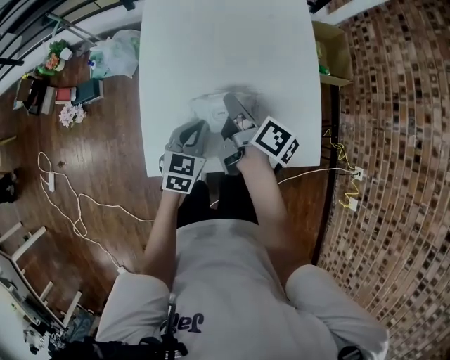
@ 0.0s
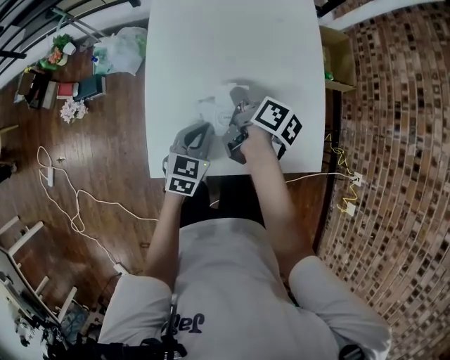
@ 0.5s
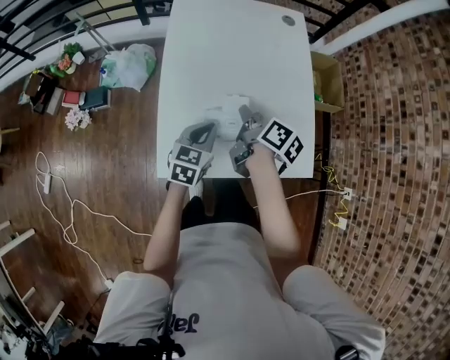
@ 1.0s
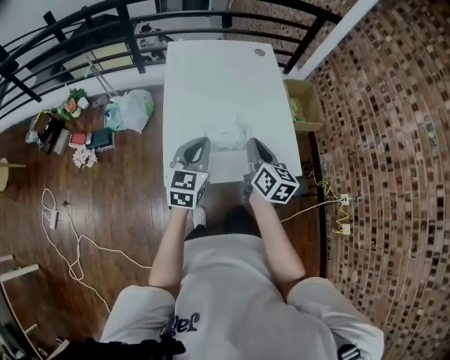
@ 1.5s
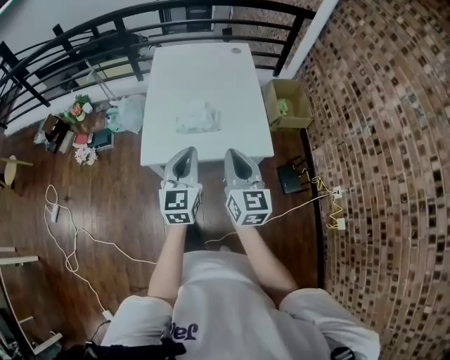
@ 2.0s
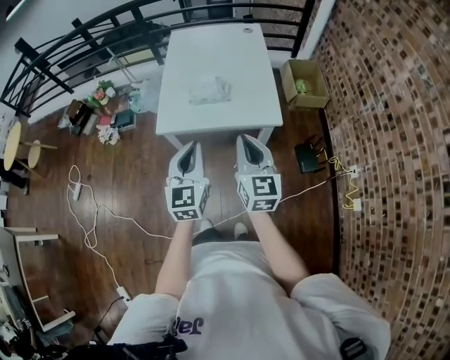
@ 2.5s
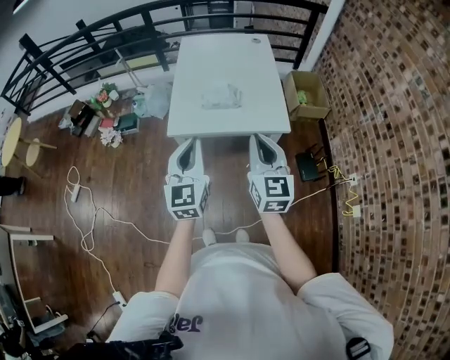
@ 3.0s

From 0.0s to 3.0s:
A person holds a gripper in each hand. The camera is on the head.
From 0.0s to 1.5s: The left gripper is displaced upward by some 20 cm, and turns by about 20 degrees; the right gripper goes some 15 cm backward and upward, and rolls counterclockwise, seen from behind, by roughly 40 degrees.
From 1.5s to 3.0s: Both grippers move backward and upward, roughly 30 cm. The left gripper turns by roughly 20 degrees, while the right gripper changes its angle by about 30 degrees.

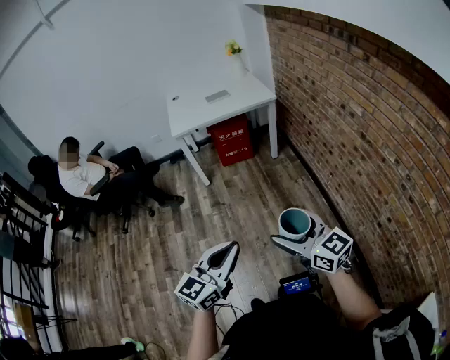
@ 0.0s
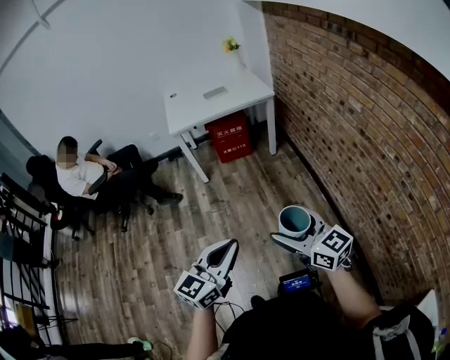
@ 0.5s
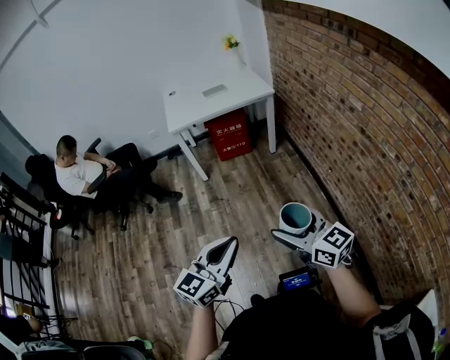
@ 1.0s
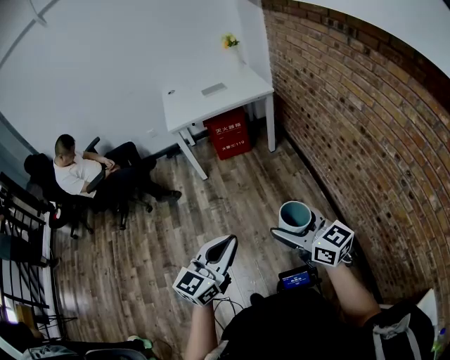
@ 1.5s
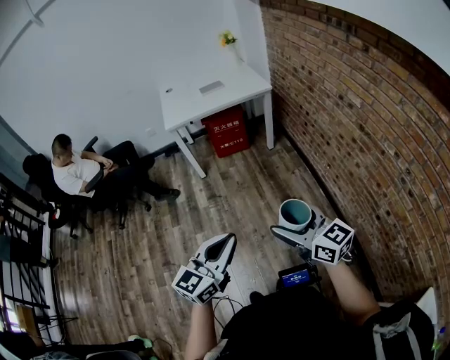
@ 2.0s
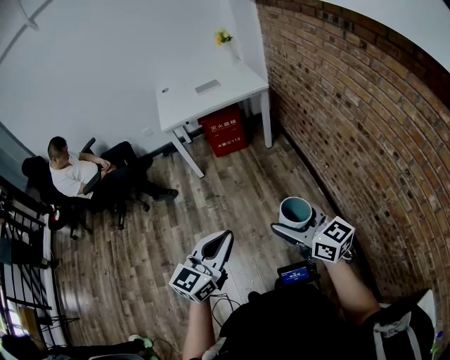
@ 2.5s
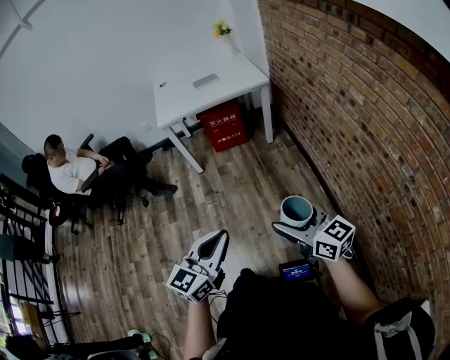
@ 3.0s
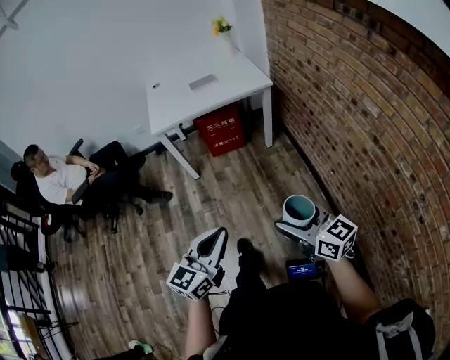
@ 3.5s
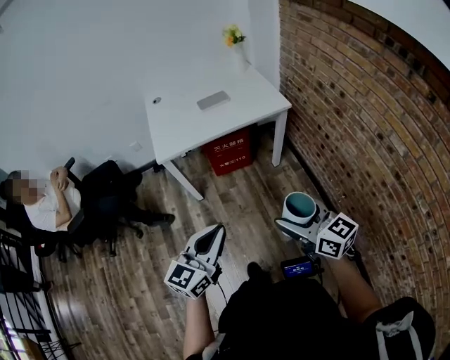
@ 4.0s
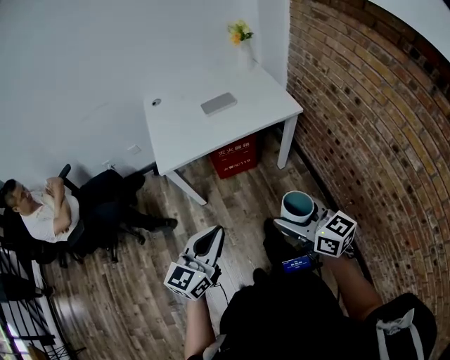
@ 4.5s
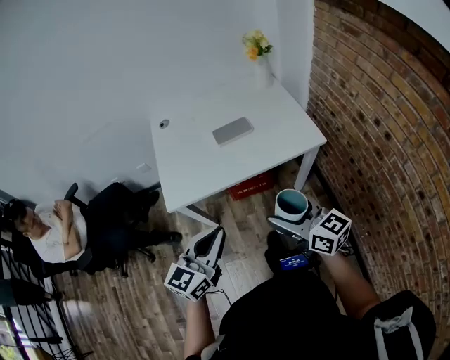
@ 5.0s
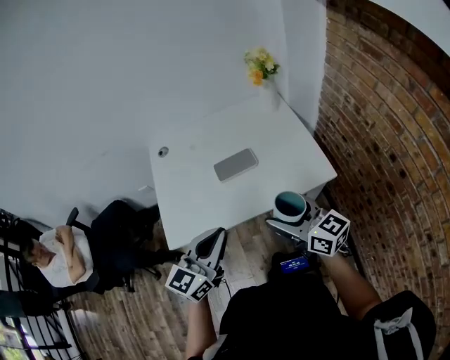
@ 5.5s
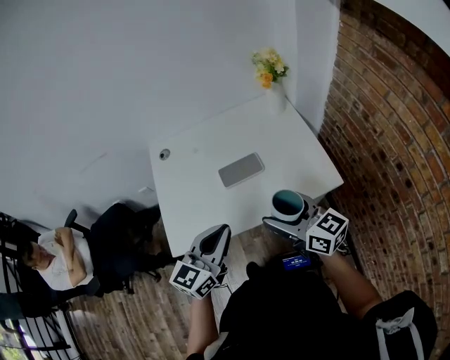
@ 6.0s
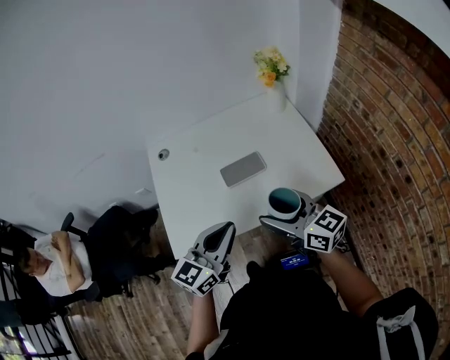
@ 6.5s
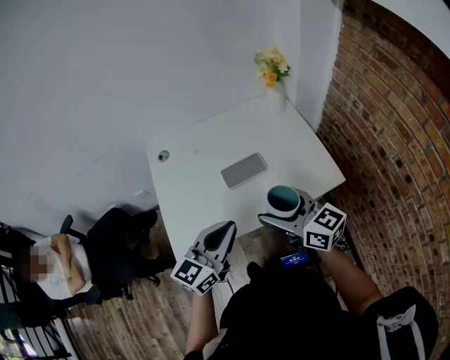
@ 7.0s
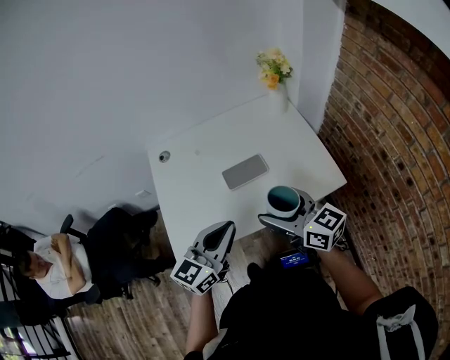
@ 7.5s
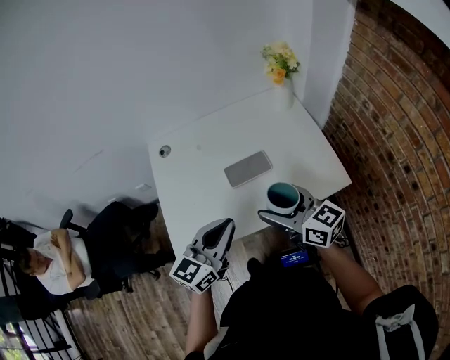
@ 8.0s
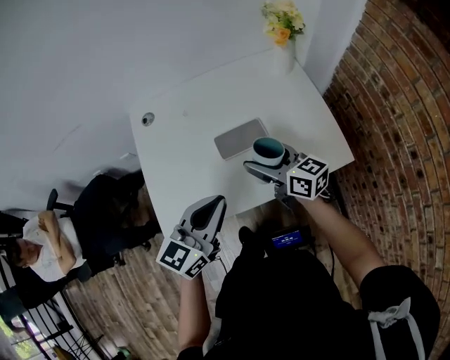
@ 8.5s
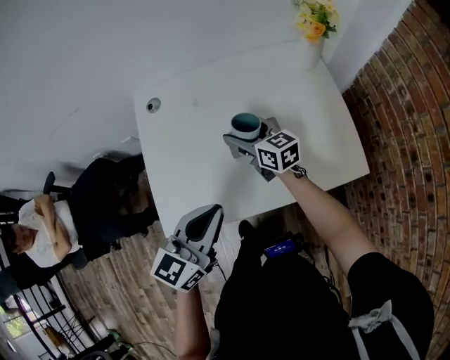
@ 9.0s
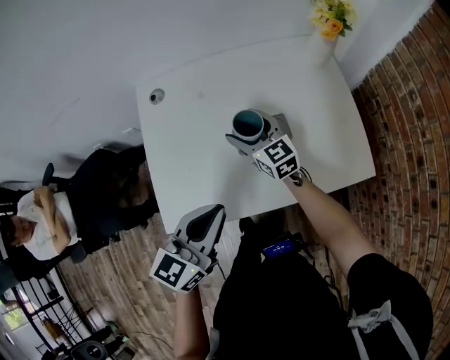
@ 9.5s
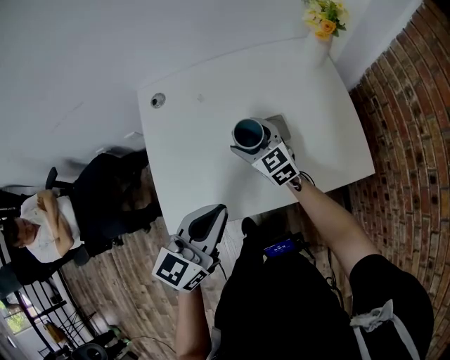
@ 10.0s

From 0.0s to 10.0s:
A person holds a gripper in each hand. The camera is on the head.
From 0.0s to 2.0s: The grippers move only a little.
From 2.0s to 4.0s: Both grippers travel together forward, about 35 cm.
From 4.0s to 6.0s: Both grippers are carried forward, approximately 50 cm.
From 6.0s to 8.0s: The right gripper ends up roughly 5 cm from where it was.
From 8.0s to 10.0s: The left gripper ends up some 5 cm from where it was; the right gripper travels downward, forward and to the left by roughly 30 cm, and changes its angle by approximately 30 degrees.

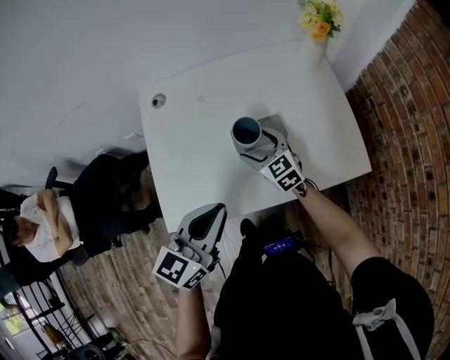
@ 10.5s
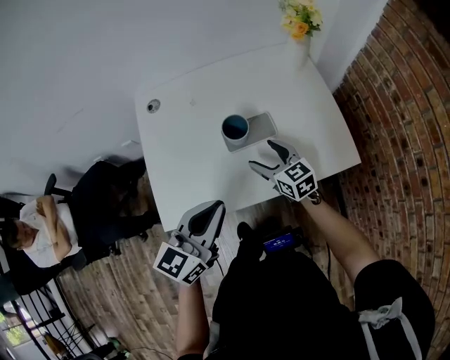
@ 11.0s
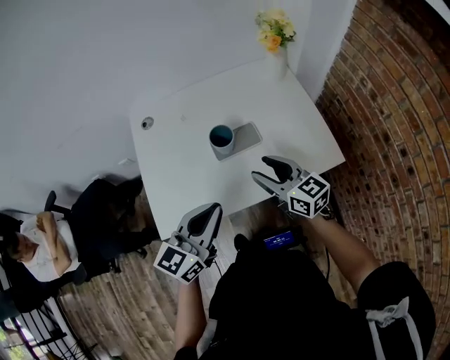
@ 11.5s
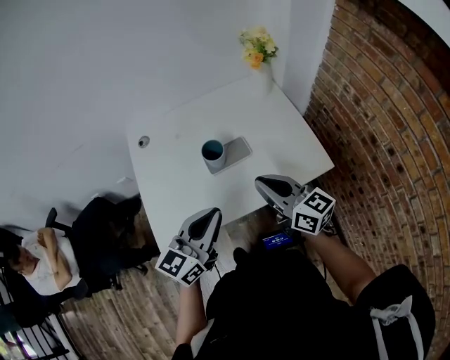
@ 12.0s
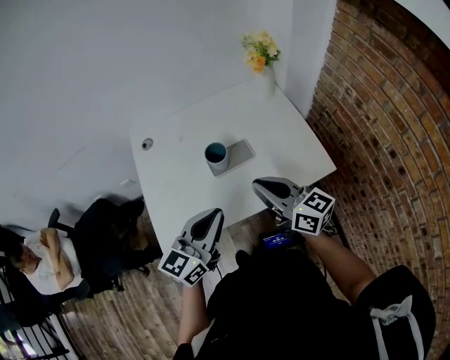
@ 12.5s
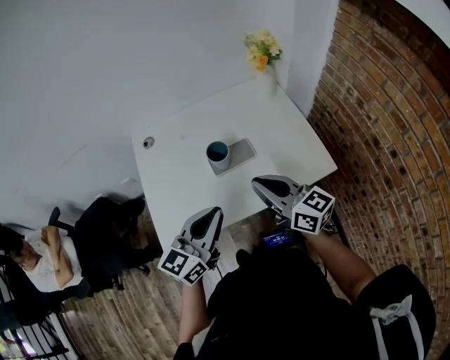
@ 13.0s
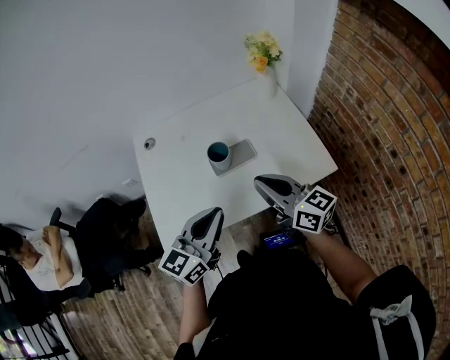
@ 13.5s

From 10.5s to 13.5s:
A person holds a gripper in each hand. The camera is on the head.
From 10.5s to 12.0s: The left gripper goes approximately 5 cm to the right; the right gripper moves upward, backward and to the right, about 25 cm, turns by some 40 degrees, and closes.
From 12.0s to 13.5s: There are only small adjustments of the grippers.

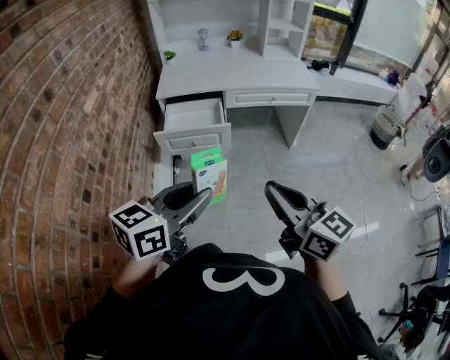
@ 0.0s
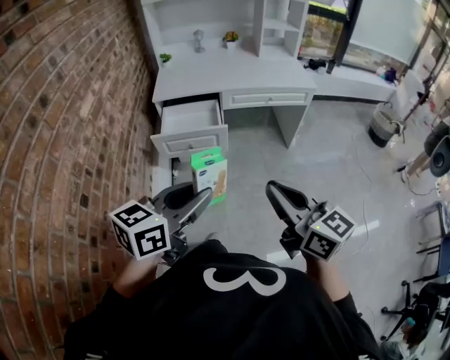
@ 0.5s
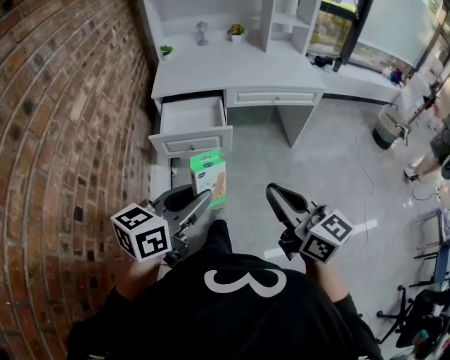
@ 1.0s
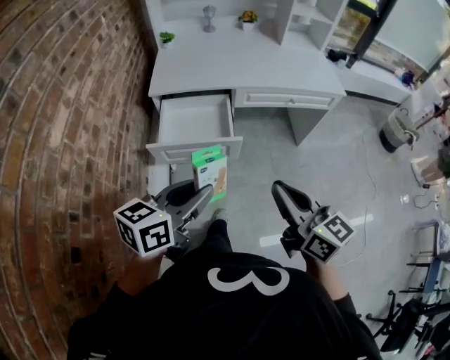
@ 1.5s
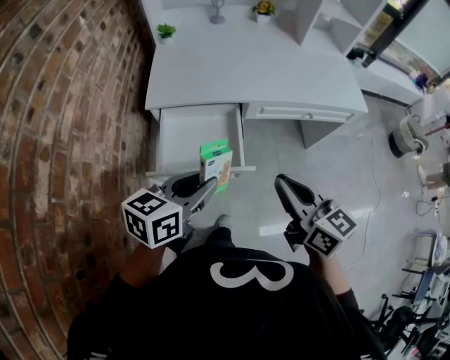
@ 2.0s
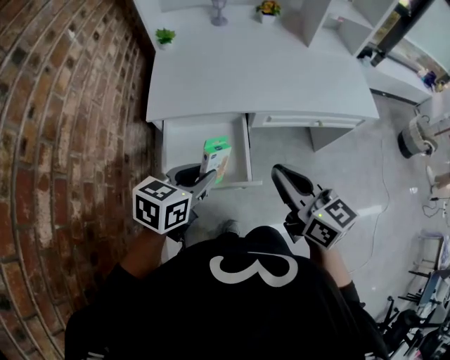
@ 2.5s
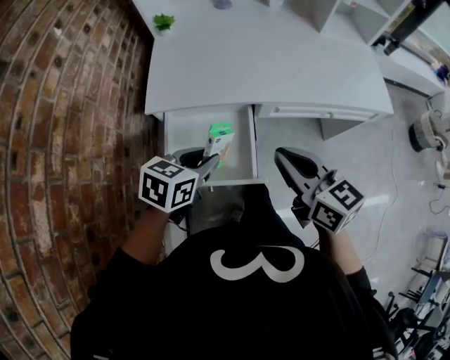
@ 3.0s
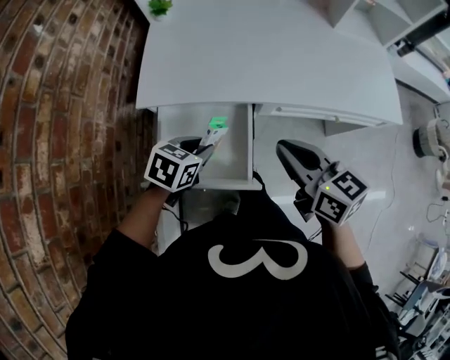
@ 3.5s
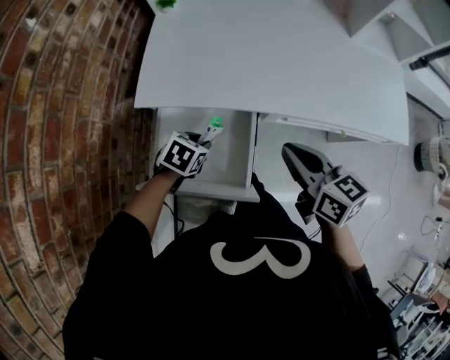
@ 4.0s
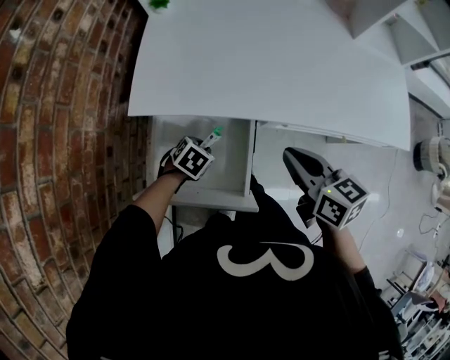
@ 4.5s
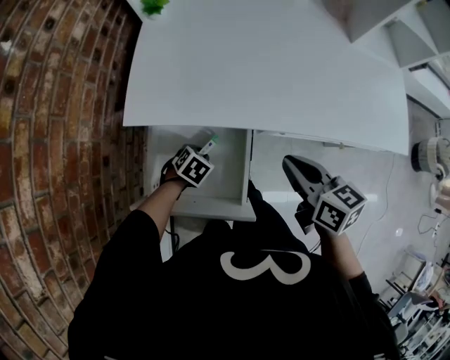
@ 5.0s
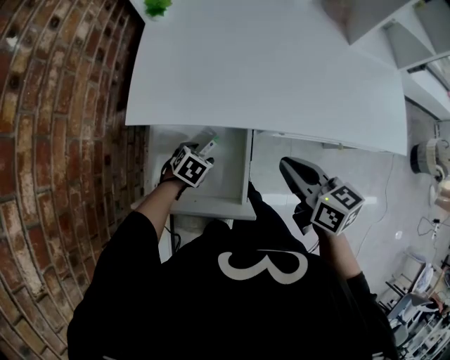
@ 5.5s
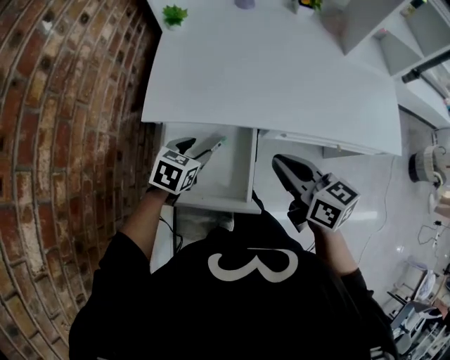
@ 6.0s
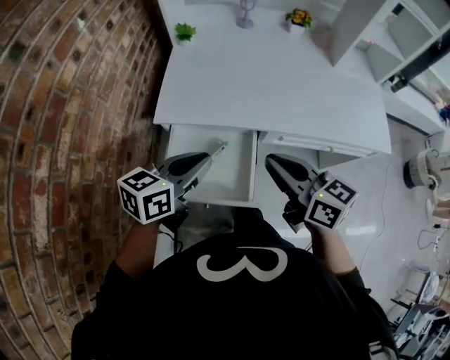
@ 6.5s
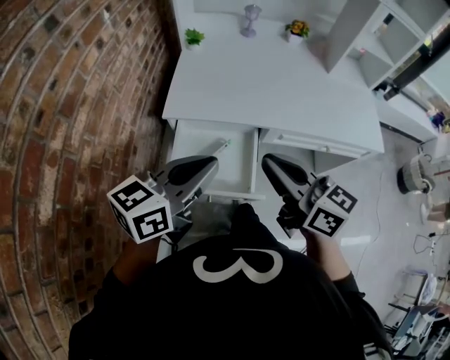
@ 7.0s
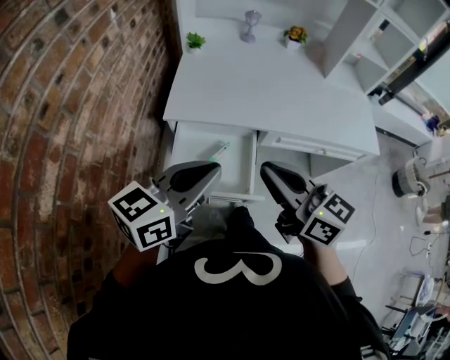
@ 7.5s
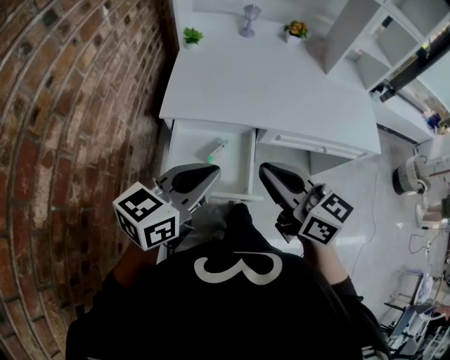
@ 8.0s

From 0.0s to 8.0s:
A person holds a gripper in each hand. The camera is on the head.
From 0.0s to 2.0s: The two grippers go approximately 40 cm forward.
From 2.0s to 4.0s: The right gripper goes about 25 cm forward and downward; the left gripper moves downward and forward, about 35 cm, and tips its fingers downward by approximately 40 degrees.
From 4.0s to 6.0s: The left gripper goes some 5 cm upward, and opens up.
From 6.0s to 8.0s: The right gripper shifts roughly 20 cm upward, backward and to the left. The left gripper travels upward and backward by some 30 cm, tips its fingers upward by about 40 degrees, and closes up.

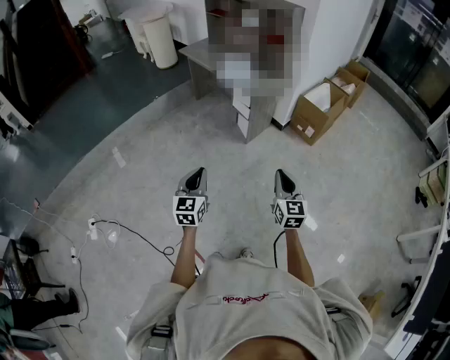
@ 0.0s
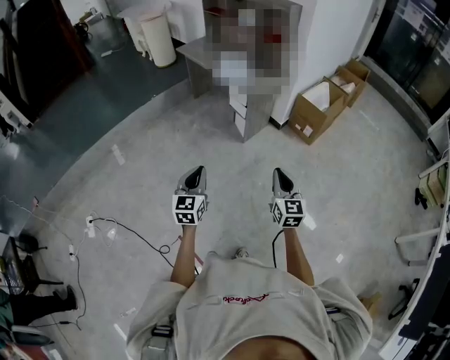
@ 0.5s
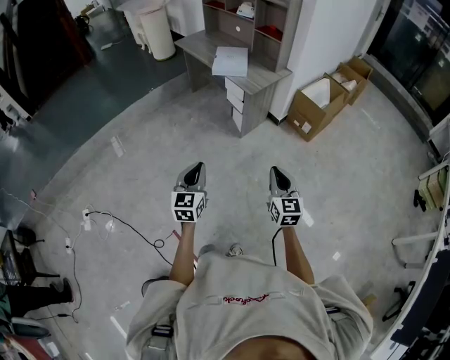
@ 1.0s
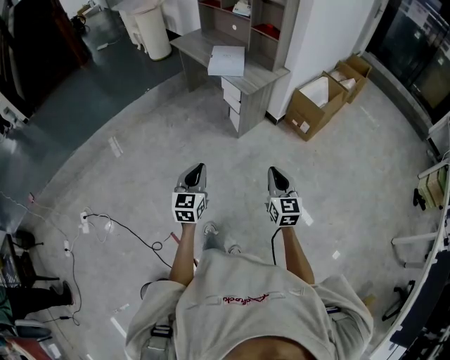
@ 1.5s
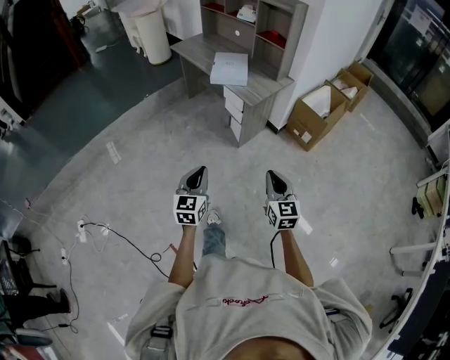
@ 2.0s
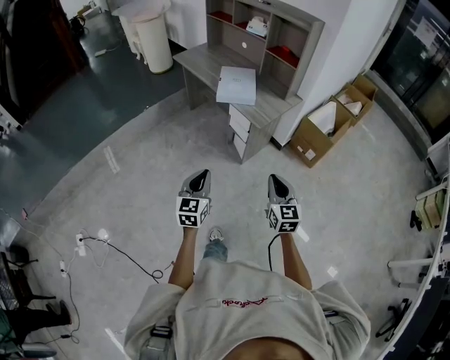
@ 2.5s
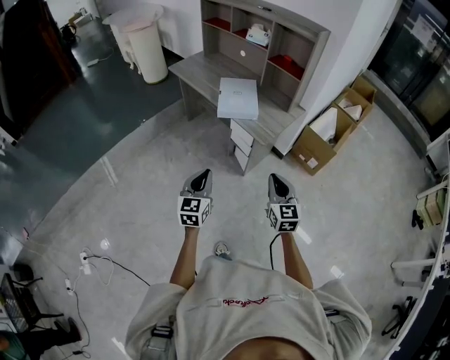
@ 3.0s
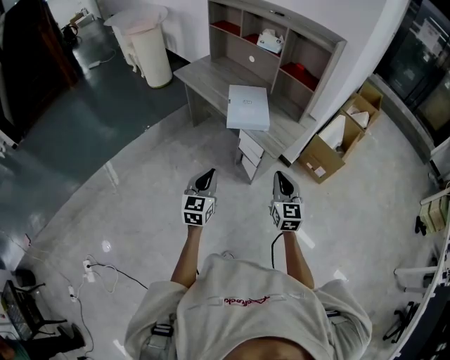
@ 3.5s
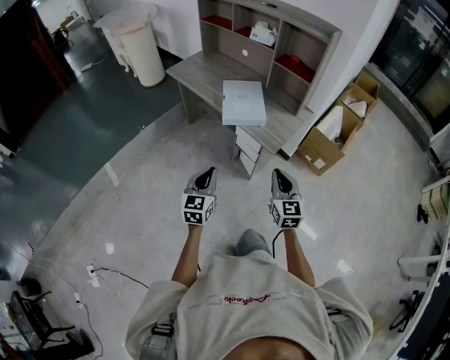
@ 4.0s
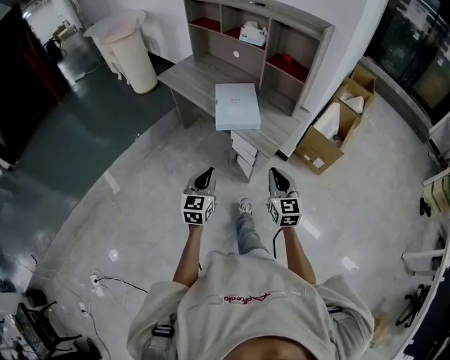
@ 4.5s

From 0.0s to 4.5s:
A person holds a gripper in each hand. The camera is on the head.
From 0.0s to 2.0s: The right gripper shifts approximately 10 cm forward; the left gripper travels forward and to the right by approximately 15 cm.
From 2.0s to 4.5s: Both grippers move forward, approximately 35 cm.
